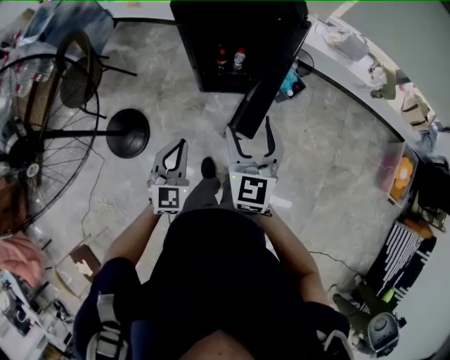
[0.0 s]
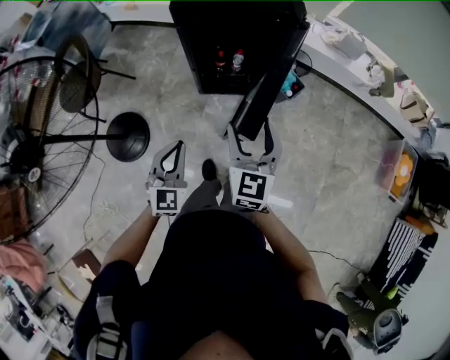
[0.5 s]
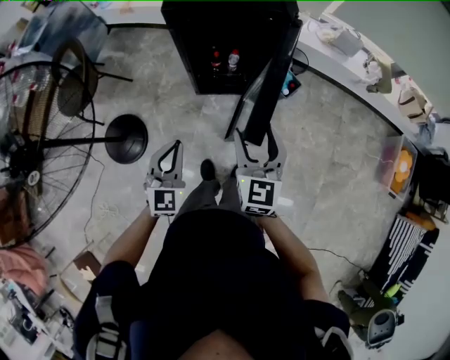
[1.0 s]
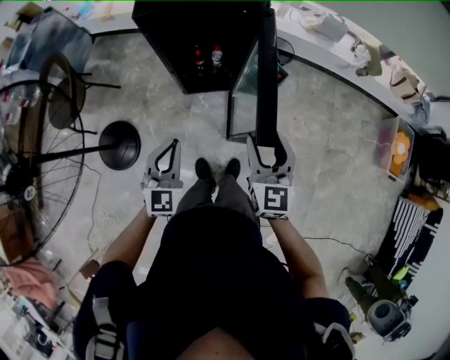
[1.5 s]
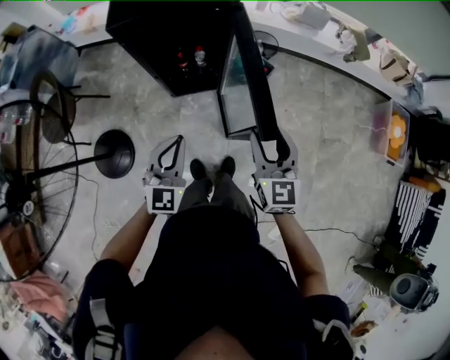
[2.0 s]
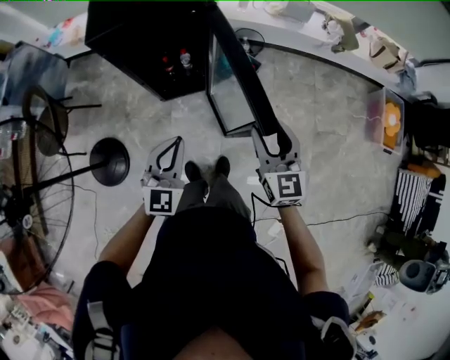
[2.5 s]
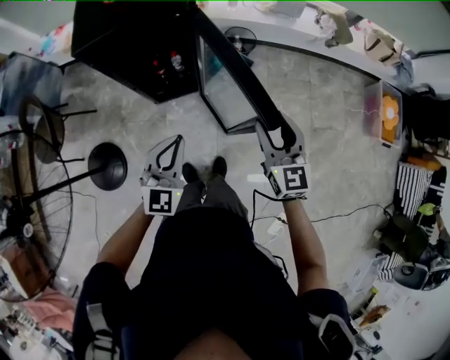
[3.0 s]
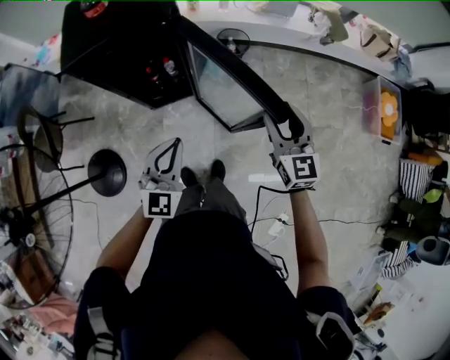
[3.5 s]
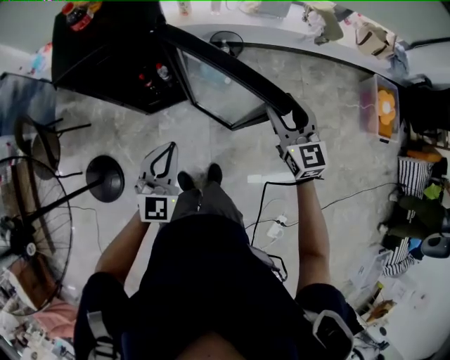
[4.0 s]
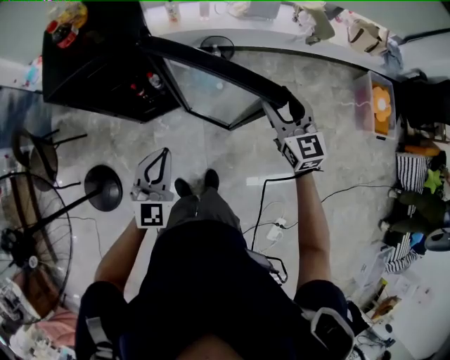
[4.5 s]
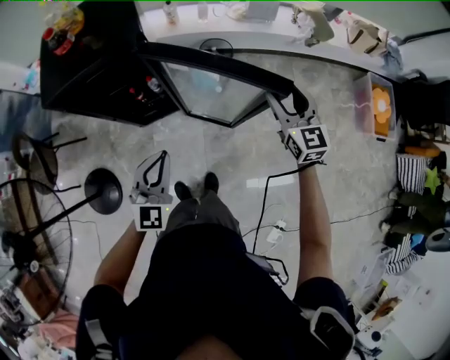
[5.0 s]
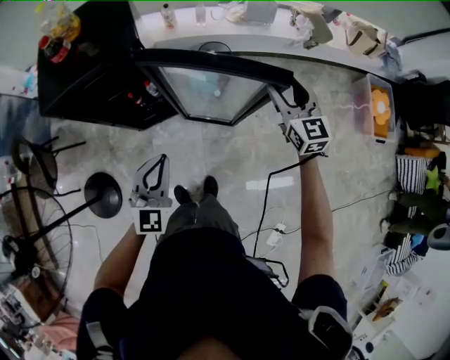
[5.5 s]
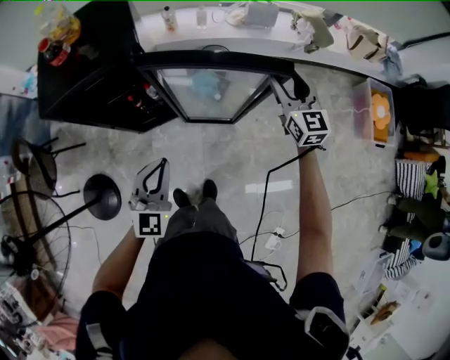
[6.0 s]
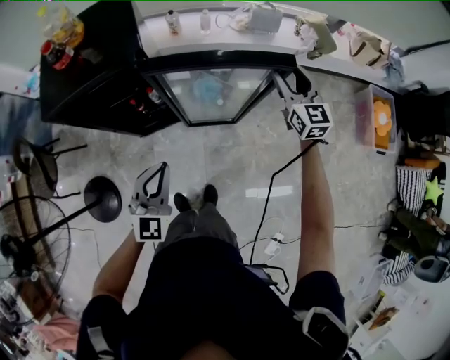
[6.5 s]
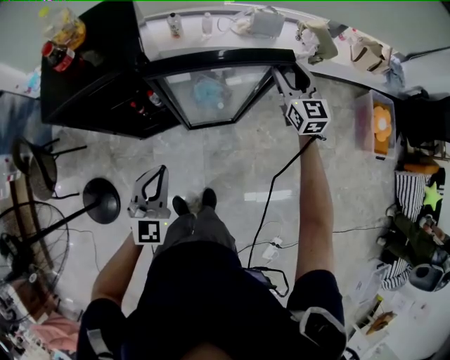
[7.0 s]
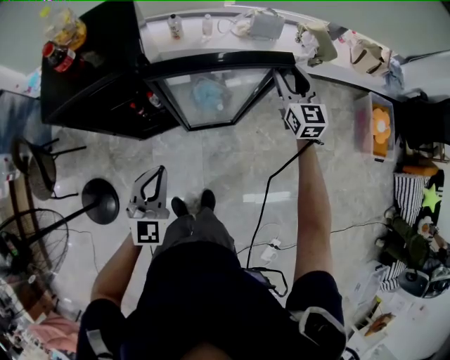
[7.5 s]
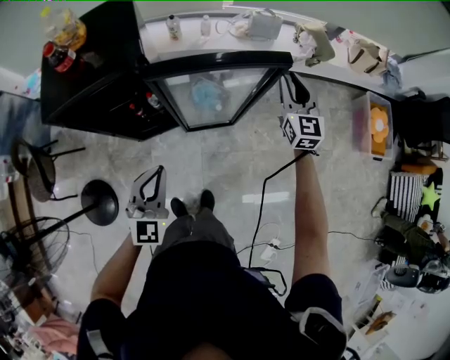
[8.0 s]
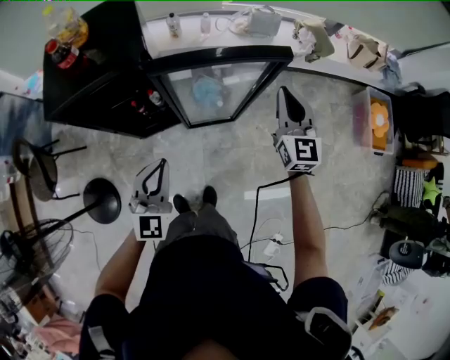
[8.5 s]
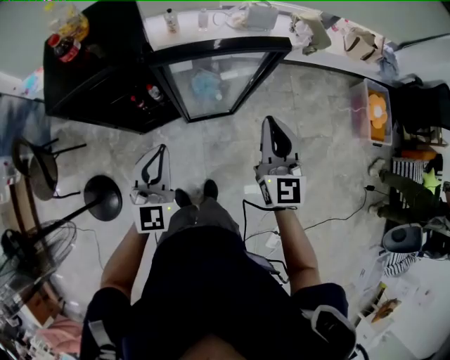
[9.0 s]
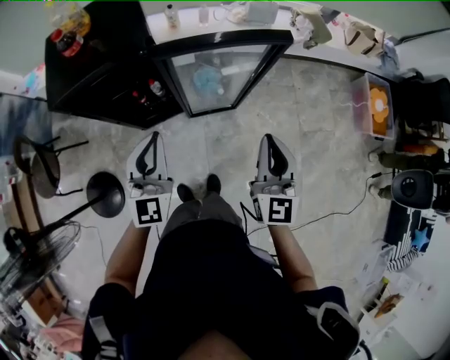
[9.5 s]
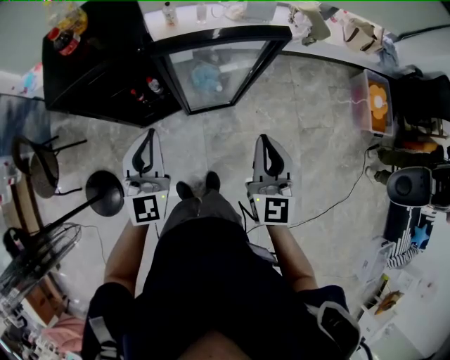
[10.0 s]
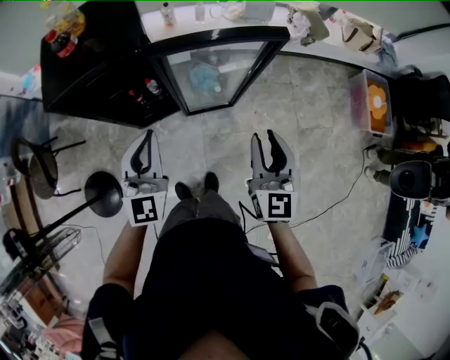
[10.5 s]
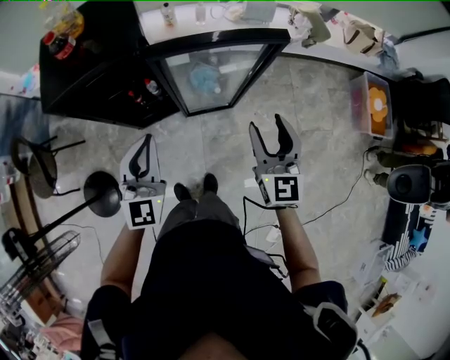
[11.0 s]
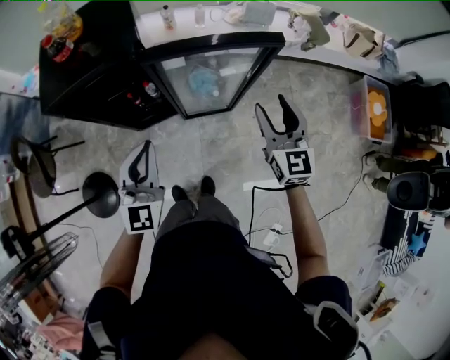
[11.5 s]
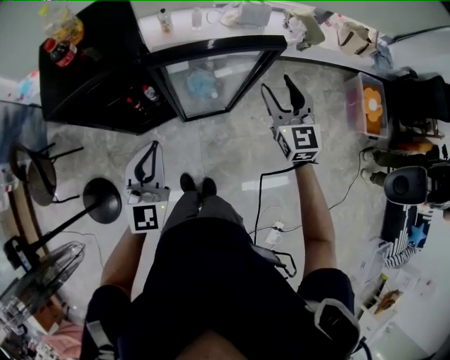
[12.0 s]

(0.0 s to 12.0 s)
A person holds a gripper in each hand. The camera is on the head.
0.0 s - 2.0 s: The grippers both shift to the right by roughly 15 cm.
2.0 s - 4.0 s: The left gripper moves to the right and forward, about 15 cm; the right gripper moves to the right and forward, approximately 25 cm.
4.0 s - 6.0 s: The left gripper shifts by roughly 5 cm; the right gripper moves forward and to the right, roughly 15 cm.
6.0 s - 8.0 s: The right gripper closes its fingers.
8.0 s - 10.0 s: The left gripper is displaced upward by approximately 10 cm. Meanwhile the right gripper shifts approximately 25 cm backward.
10.0 s - 12.0 s: The right gripper moves forward, approximately 15 cm, and opens its fingers.

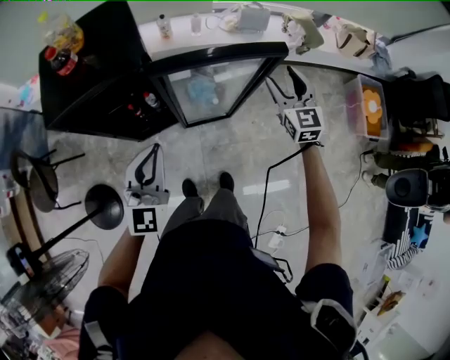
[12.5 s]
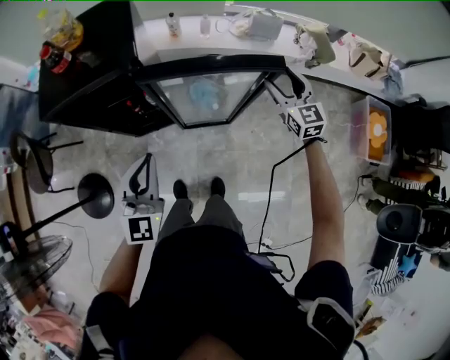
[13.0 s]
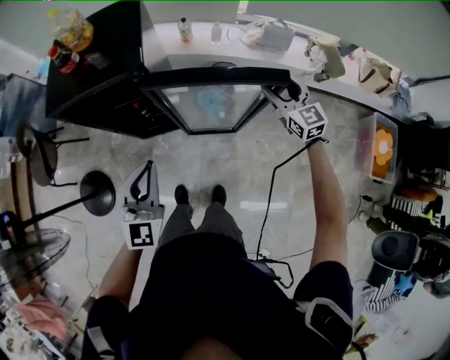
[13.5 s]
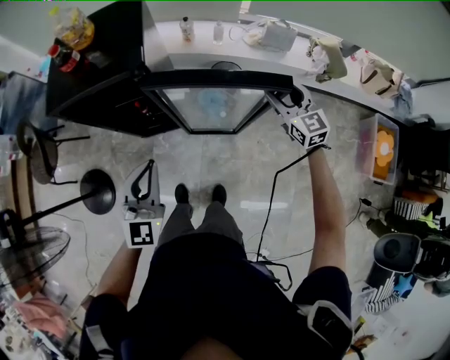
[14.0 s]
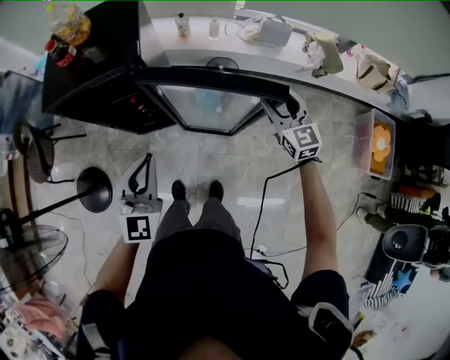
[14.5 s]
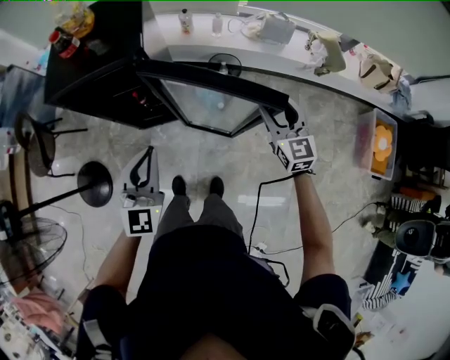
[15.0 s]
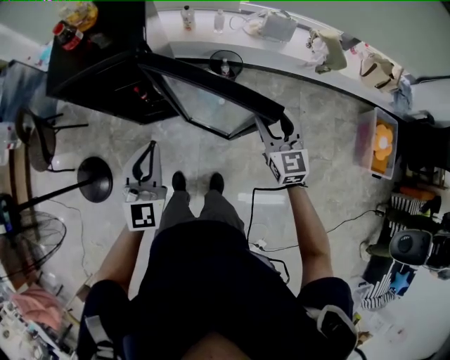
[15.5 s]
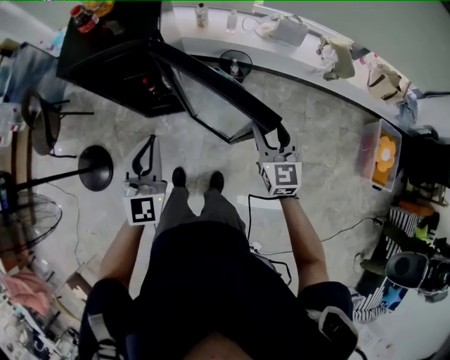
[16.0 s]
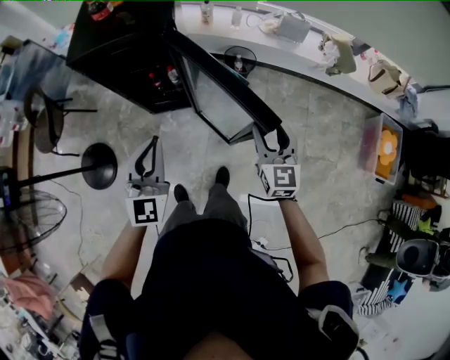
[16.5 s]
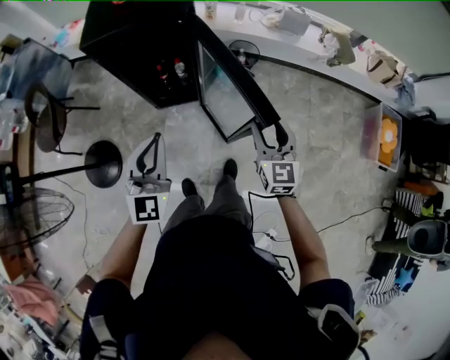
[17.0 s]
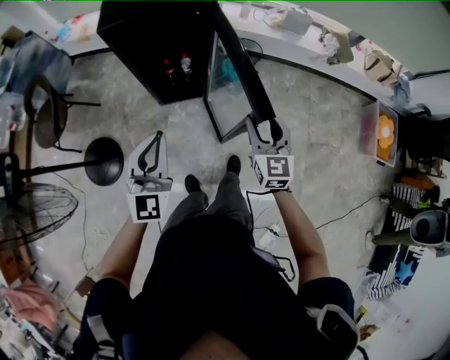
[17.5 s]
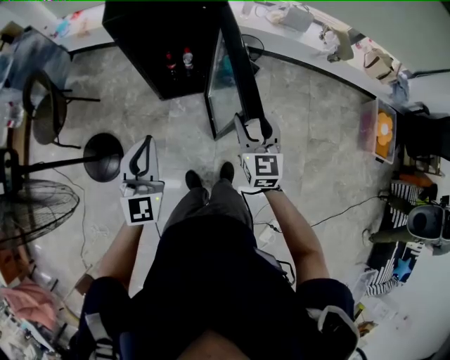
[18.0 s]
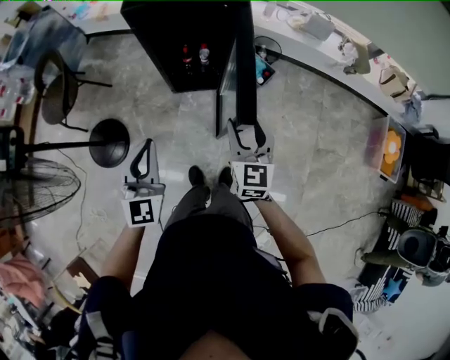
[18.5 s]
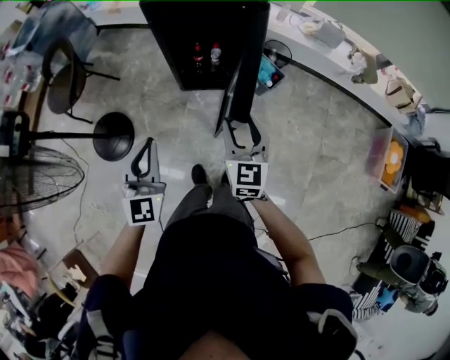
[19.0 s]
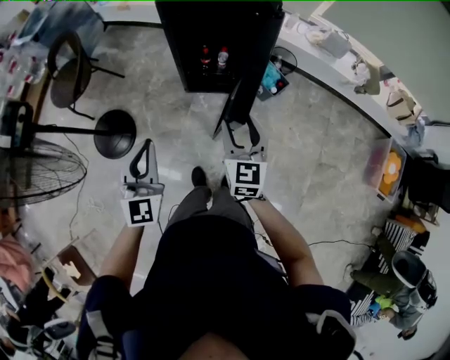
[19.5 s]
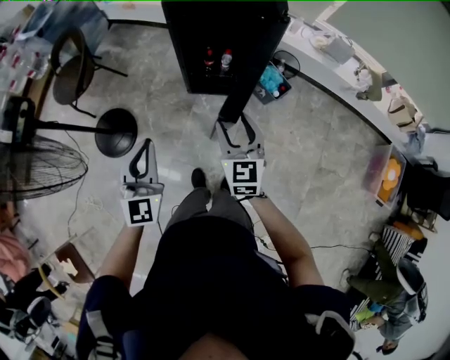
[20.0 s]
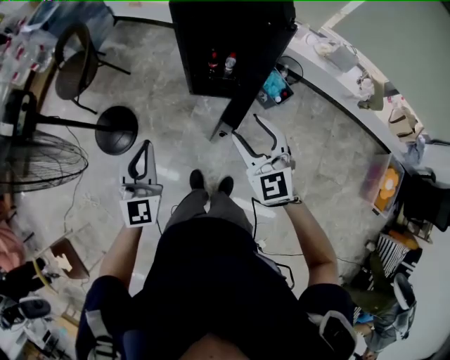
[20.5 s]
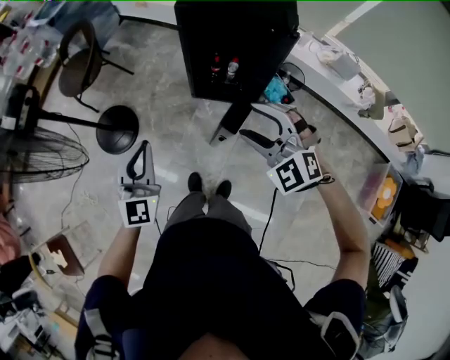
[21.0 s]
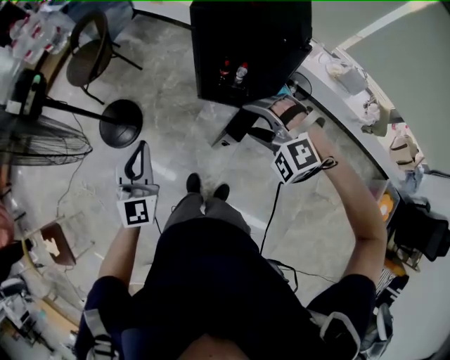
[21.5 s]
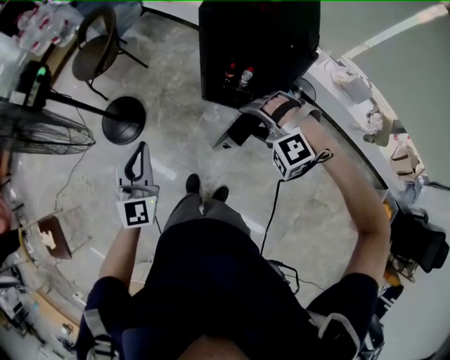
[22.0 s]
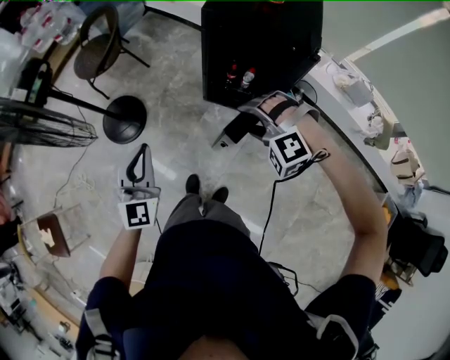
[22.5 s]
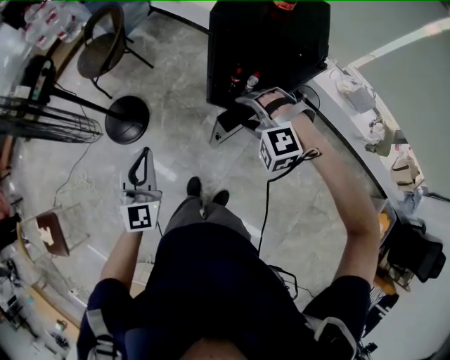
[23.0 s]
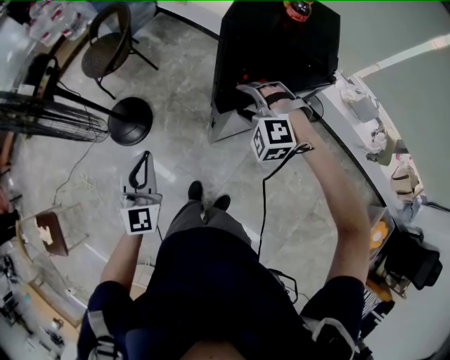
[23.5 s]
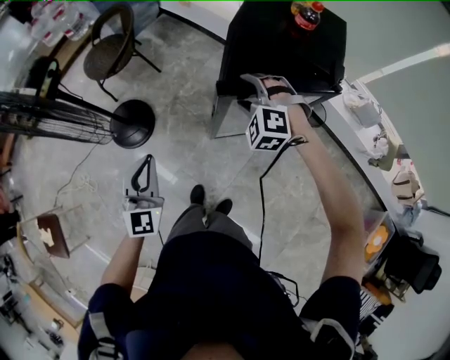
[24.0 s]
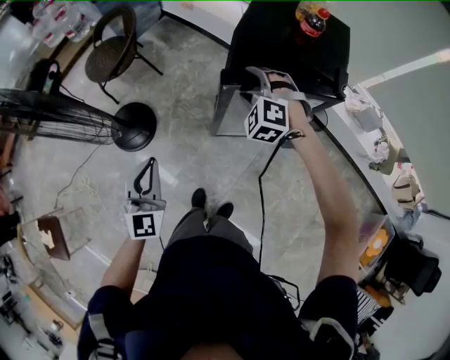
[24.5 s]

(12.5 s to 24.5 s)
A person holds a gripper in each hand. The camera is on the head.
12.5 s - 14.5 s: The left gripper travels to the right by about 5 cm. The right gripper reaches roughly 10 cm forward, then returns.
14.5 s - 16.5 s: The left gripper heads backward, covering roughly 10 cm; the right gripper heads backward and to the left, covering some 20 cm.
16.5 s - 18.5 s: Both grippers move to the left and backward, some 25 cm.
18.5 s - 20.5 s: The grippers both shift to the left by roughly 10 cm. The right gripper changes its angle by roughly 40 degrees.
20.5 s - 22.5 s: The right gripper moves forward, roughly 5 cm, and rolls counterclockwise, seen from behind, by some 70 degrees.
22.5 s - 24.5 s: The left gripper is displaced forward and to the left by approximately 10 cm. Meanwhile the right gripper goes approximately 20 cm forward, and turns by roughly 30 degrees.

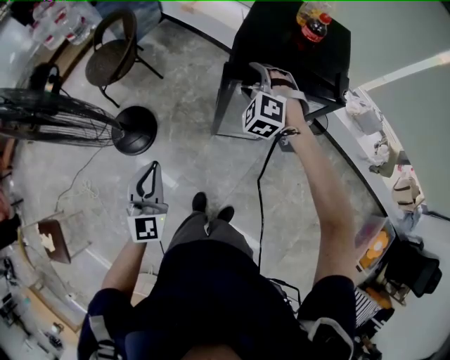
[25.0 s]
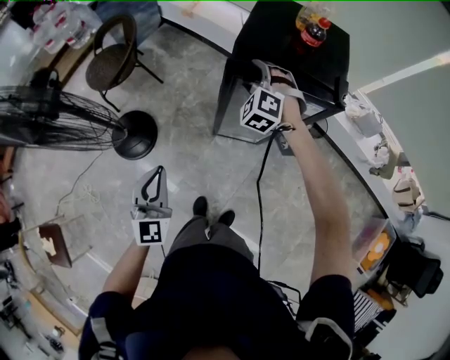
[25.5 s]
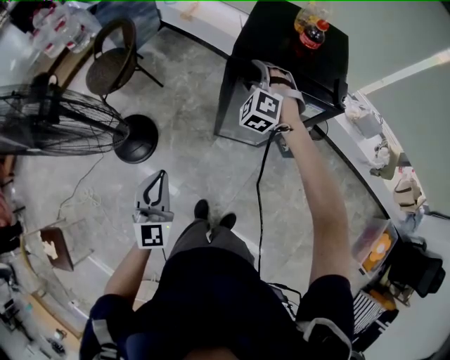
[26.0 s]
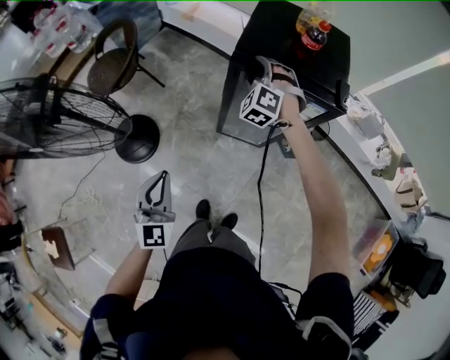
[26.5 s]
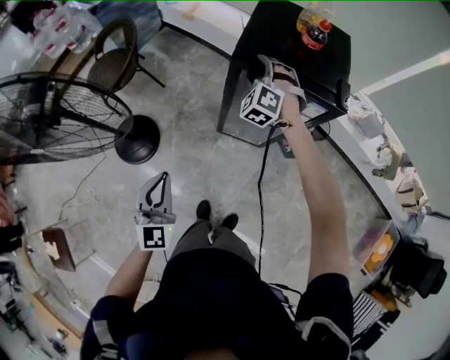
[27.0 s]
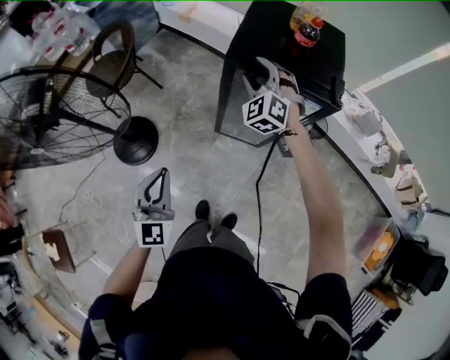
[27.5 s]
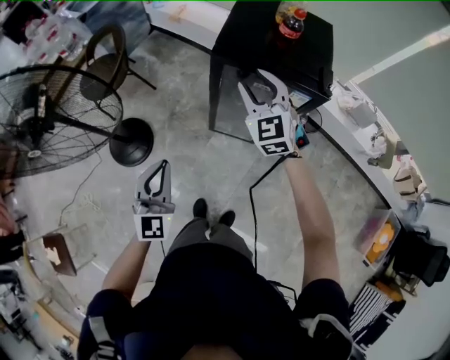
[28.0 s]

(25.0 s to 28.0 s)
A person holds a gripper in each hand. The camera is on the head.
25.0 s - 26.5 s: The right gripper goes some 5 cm forward.
26.5 s - 28.0 s: The right gripper moves backward and upward, some 15 cm, and swivels approximately 40 degrees. Meanwhile the left gripper changes place by roughly 5 cm.
